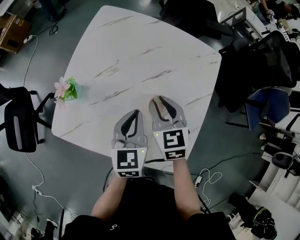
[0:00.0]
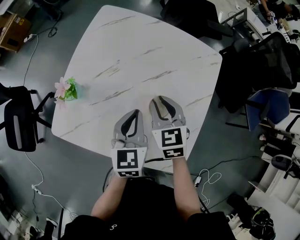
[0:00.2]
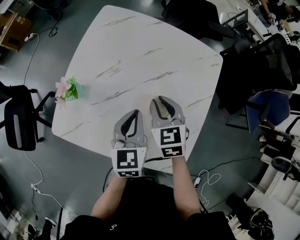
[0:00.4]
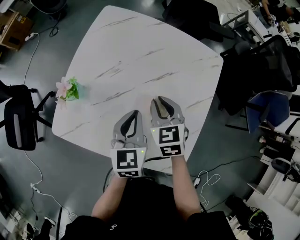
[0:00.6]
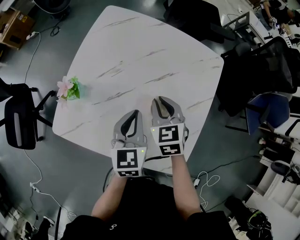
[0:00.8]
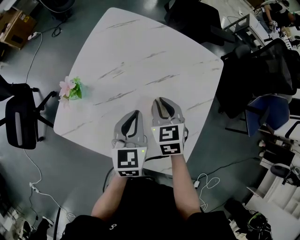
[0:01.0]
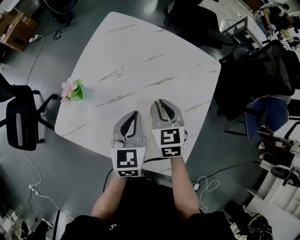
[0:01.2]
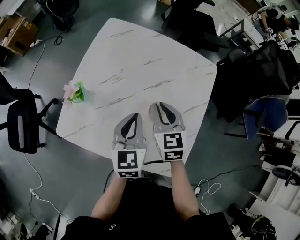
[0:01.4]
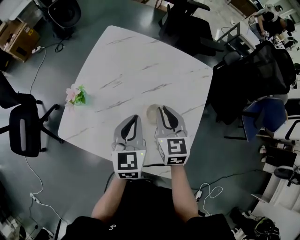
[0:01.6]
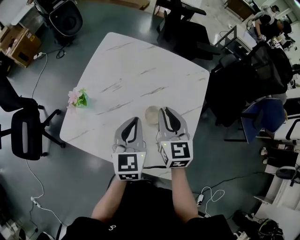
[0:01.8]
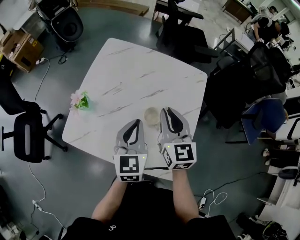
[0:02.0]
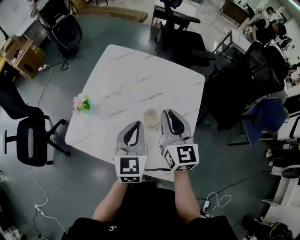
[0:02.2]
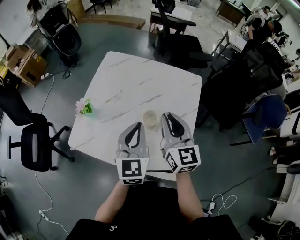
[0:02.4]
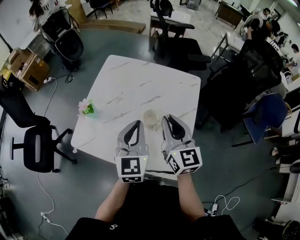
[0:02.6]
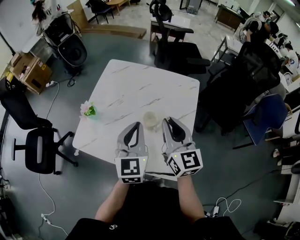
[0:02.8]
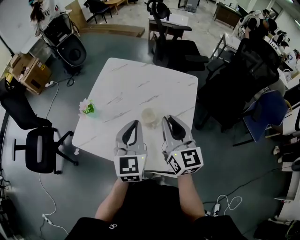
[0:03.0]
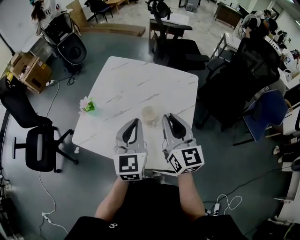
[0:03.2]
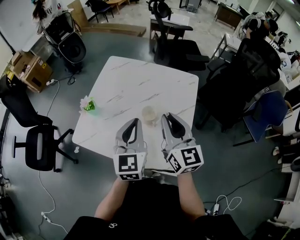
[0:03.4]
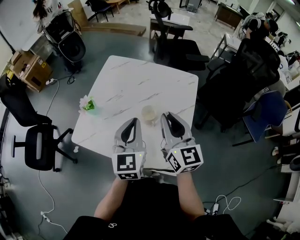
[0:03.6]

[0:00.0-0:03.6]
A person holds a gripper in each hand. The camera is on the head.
0:00.0 to 0:01.8: Both grippers travel together upward, roughly 10 cm.
0:01.8 to 0:03.6: Both grippers move upward and backward, approximately 15 cm. The right gripper changes its angle by approximately 20 degrees.

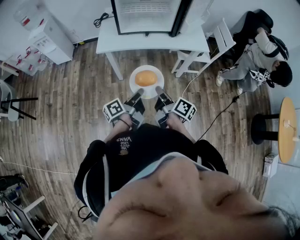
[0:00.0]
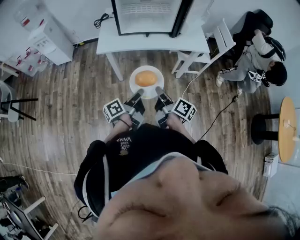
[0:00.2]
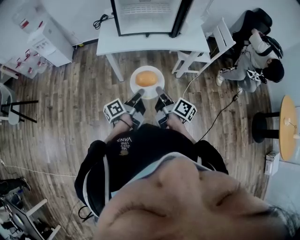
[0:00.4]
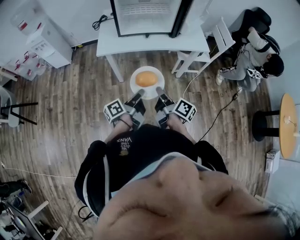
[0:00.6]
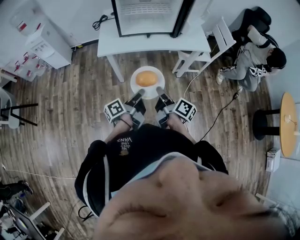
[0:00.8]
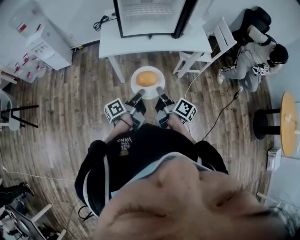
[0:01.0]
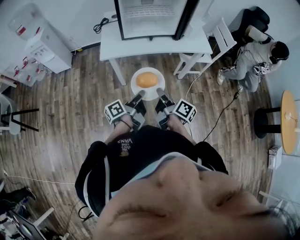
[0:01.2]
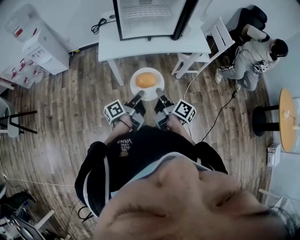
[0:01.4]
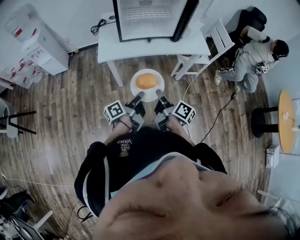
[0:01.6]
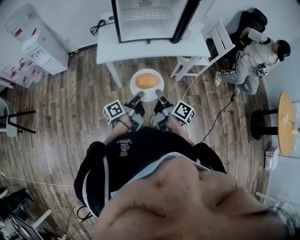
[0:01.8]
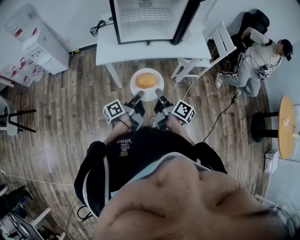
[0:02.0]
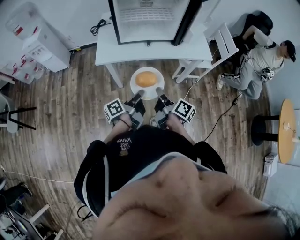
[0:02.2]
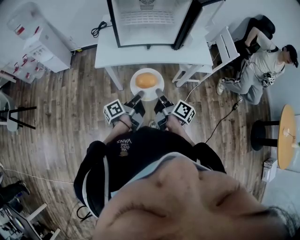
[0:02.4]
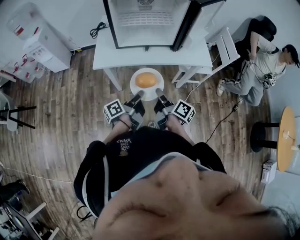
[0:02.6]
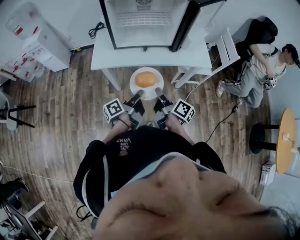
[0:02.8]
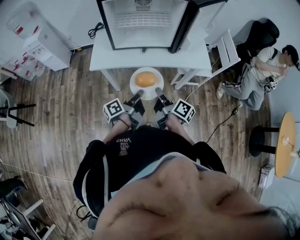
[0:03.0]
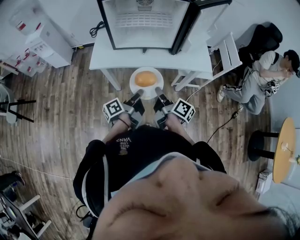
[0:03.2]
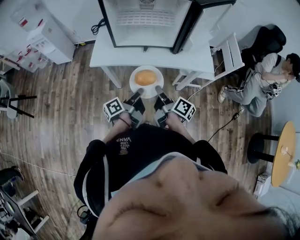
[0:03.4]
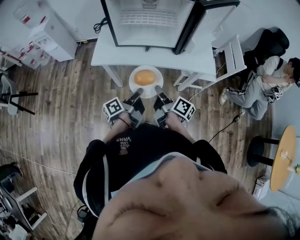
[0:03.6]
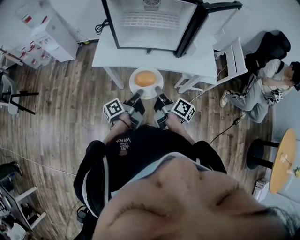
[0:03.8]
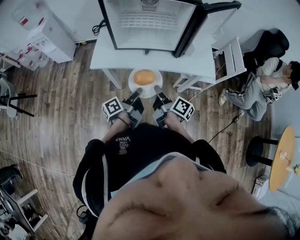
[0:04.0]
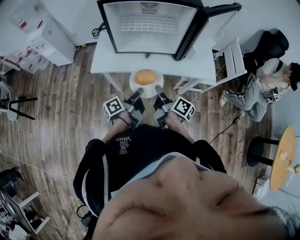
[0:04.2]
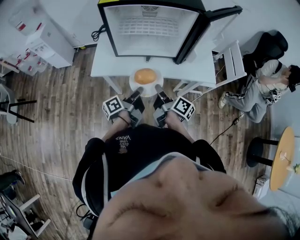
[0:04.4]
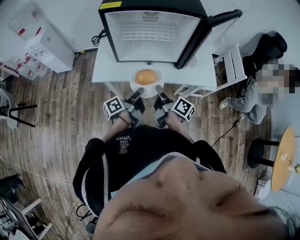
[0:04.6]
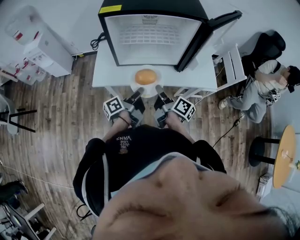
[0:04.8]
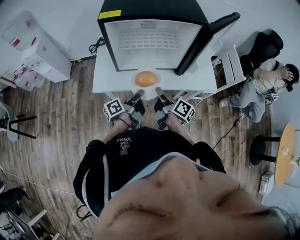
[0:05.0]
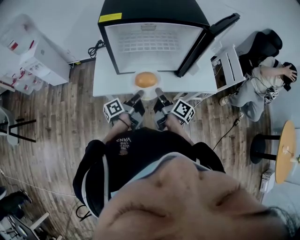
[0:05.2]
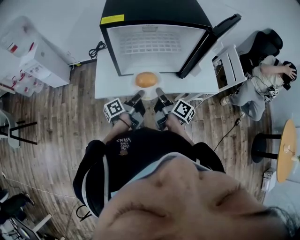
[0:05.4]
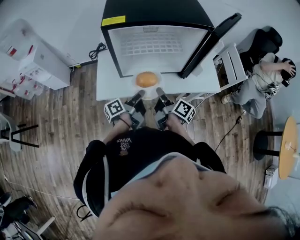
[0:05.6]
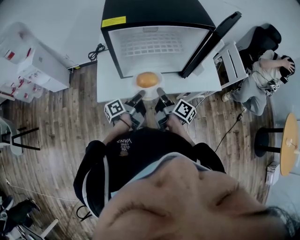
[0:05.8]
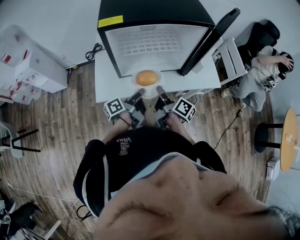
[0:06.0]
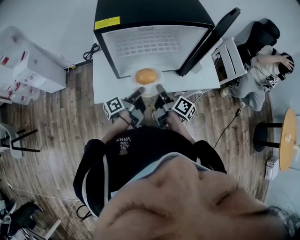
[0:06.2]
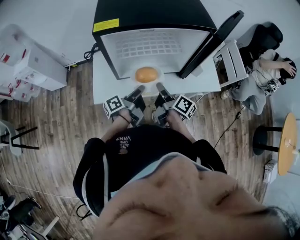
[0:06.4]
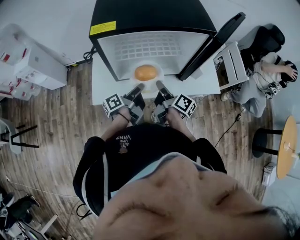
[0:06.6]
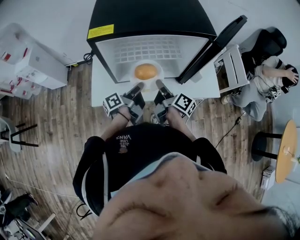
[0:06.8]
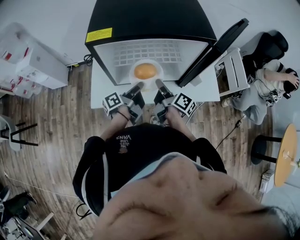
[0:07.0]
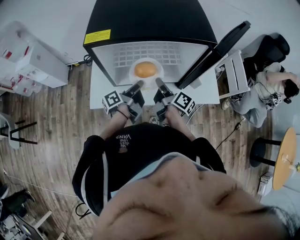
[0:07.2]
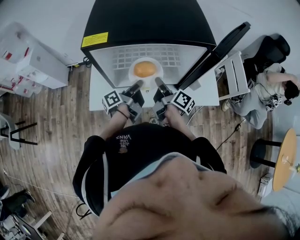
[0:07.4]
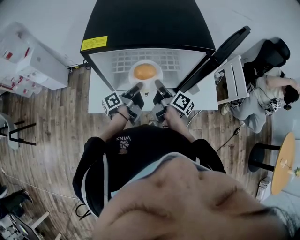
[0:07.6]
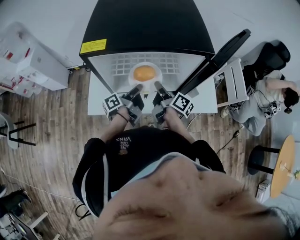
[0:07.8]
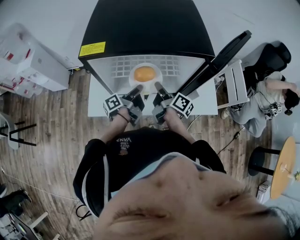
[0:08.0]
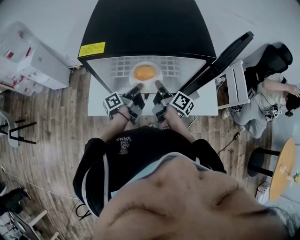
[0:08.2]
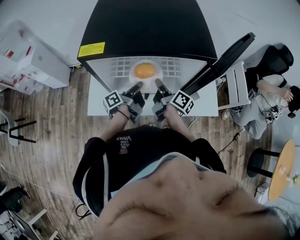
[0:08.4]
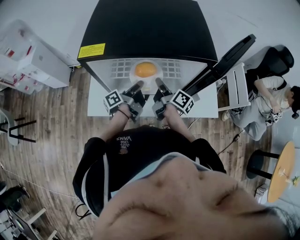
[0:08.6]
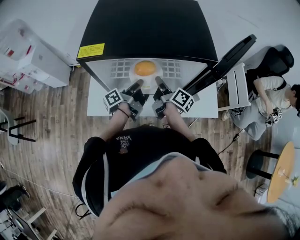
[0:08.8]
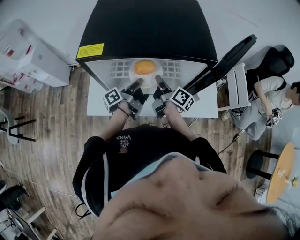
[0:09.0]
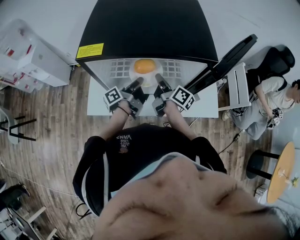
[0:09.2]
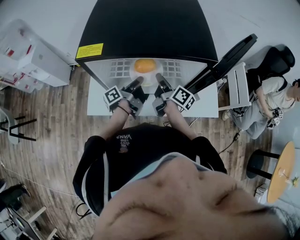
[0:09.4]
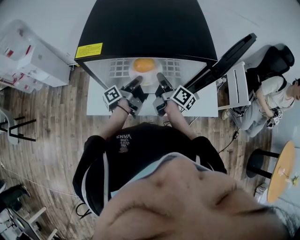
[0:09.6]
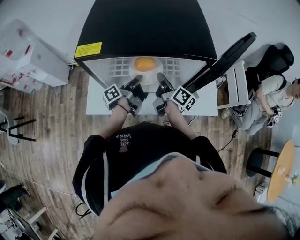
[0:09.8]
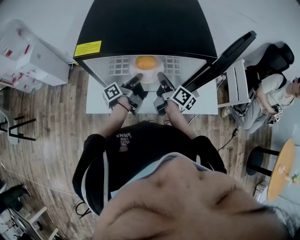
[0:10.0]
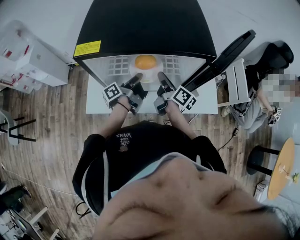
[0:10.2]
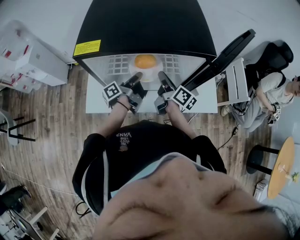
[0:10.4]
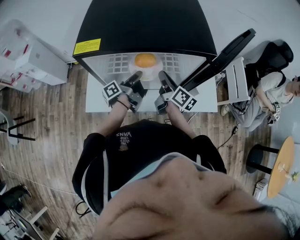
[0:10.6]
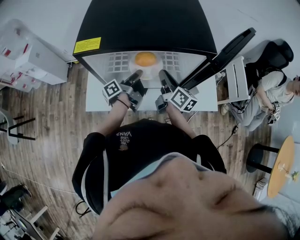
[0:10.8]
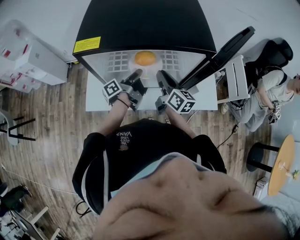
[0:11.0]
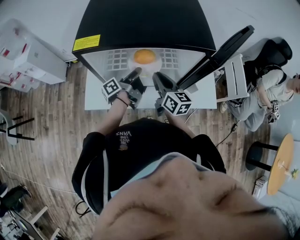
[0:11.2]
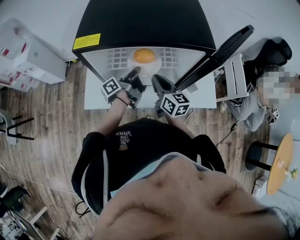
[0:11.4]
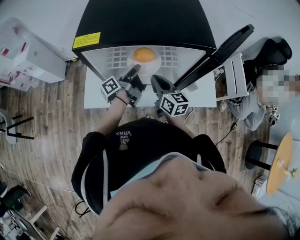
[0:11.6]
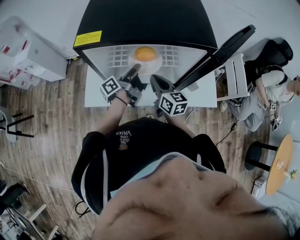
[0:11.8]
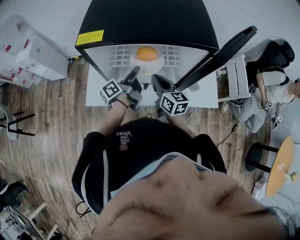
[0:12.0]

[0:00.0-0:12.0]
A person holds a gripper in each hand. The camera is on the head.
0:00.0 to 0:01.6: Both grippers move to the left, about 5 cm.
0:01.6 to 0:03.0: The two grippers go approximately 15 cm forward and to the right.
0:03.0 to 0:04.4: Both grippers travel together forward, about 10 cm.
0:04.4 to 0:06.0: Both grippers move forward and to the left, about 10 cm.
0:06.0 to 0:07.6: The two grippers go approximately 15 cm forward.
0:07.6 to 0:09.0: Both grippers move forward, roughly 5 cm.
0:09.0 to 0:10.4: The grippers move only a little.
0:10.4 to 0:12.0: The right gripper ends up about 5 cm from where it was, and swivels about 40 degrees; the left gripper opens.

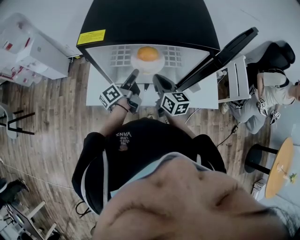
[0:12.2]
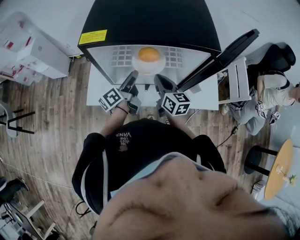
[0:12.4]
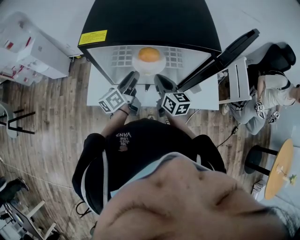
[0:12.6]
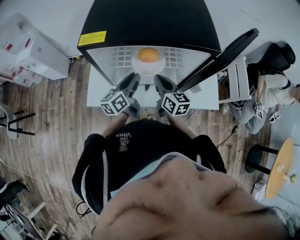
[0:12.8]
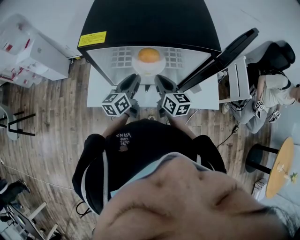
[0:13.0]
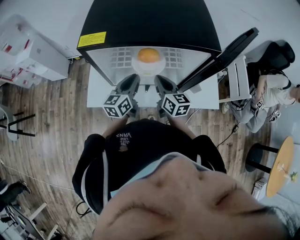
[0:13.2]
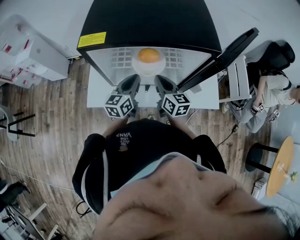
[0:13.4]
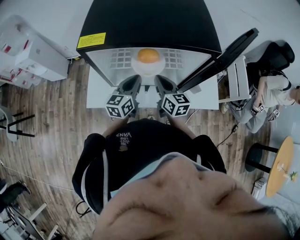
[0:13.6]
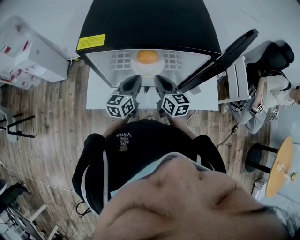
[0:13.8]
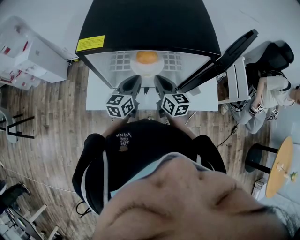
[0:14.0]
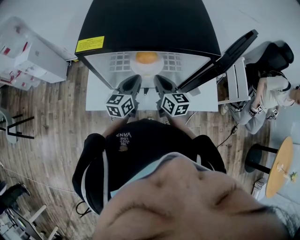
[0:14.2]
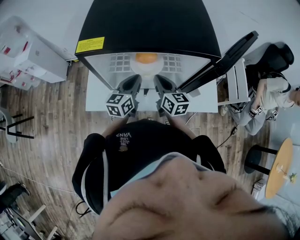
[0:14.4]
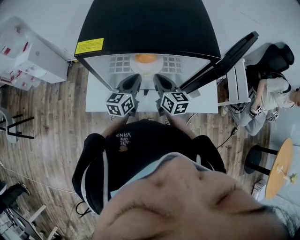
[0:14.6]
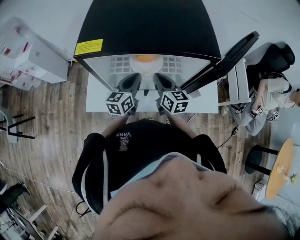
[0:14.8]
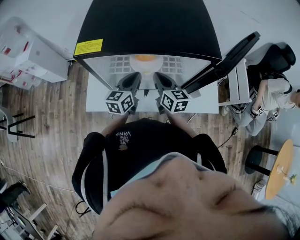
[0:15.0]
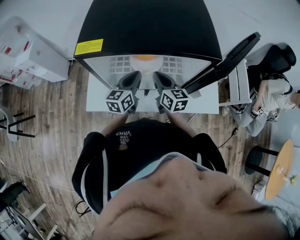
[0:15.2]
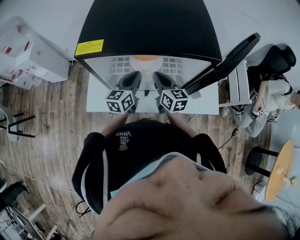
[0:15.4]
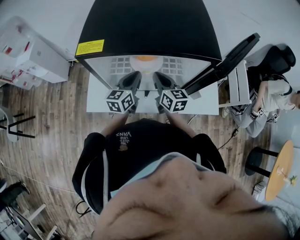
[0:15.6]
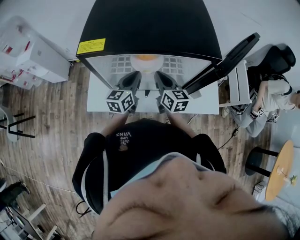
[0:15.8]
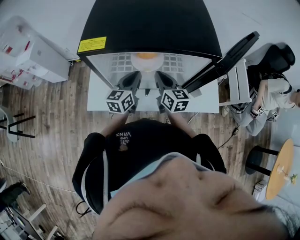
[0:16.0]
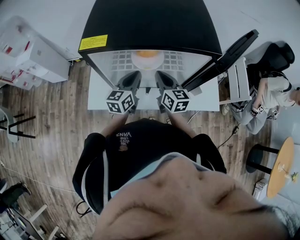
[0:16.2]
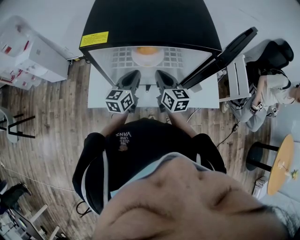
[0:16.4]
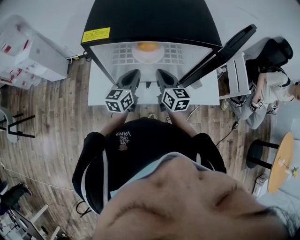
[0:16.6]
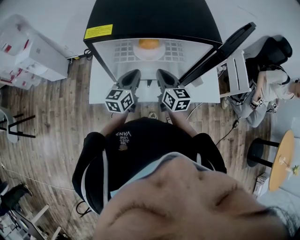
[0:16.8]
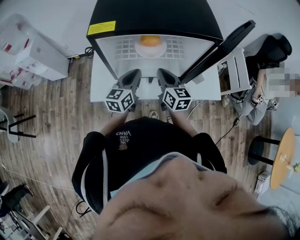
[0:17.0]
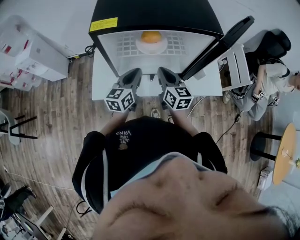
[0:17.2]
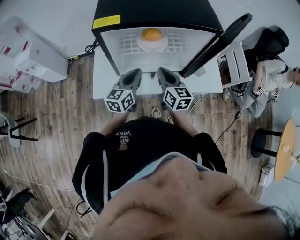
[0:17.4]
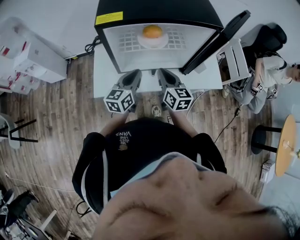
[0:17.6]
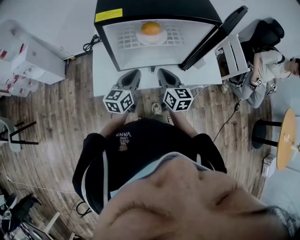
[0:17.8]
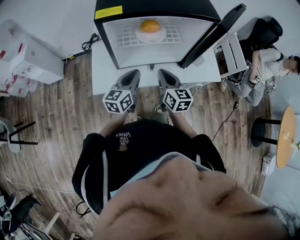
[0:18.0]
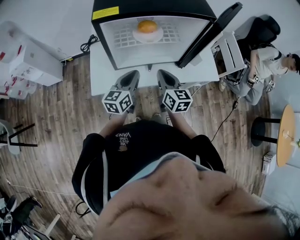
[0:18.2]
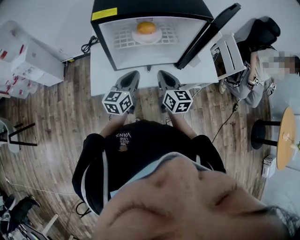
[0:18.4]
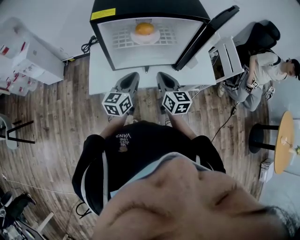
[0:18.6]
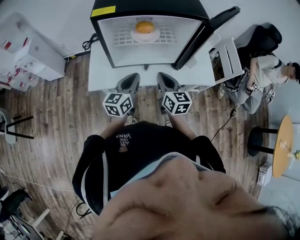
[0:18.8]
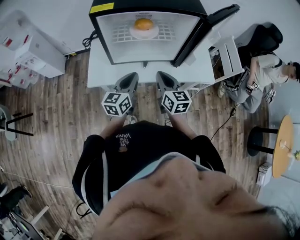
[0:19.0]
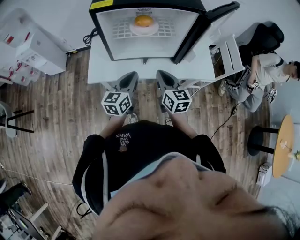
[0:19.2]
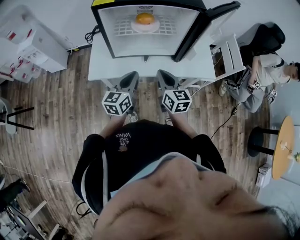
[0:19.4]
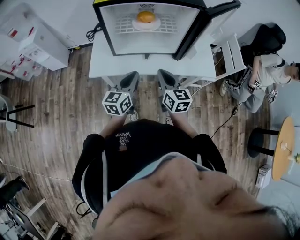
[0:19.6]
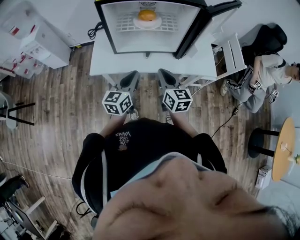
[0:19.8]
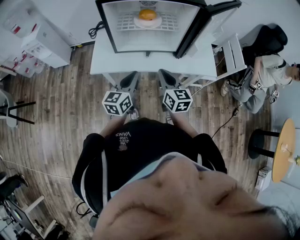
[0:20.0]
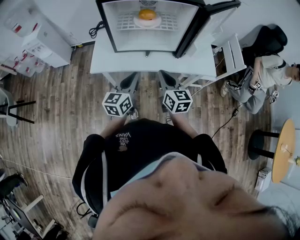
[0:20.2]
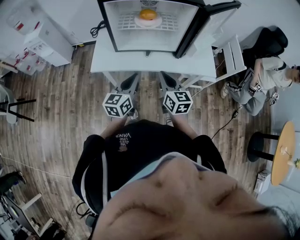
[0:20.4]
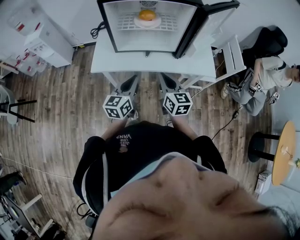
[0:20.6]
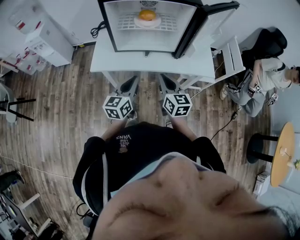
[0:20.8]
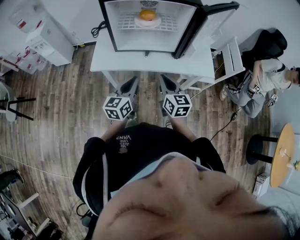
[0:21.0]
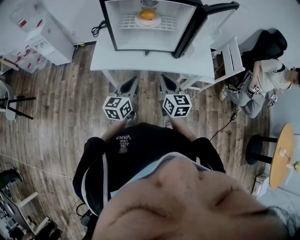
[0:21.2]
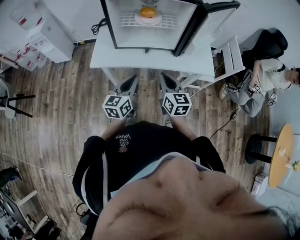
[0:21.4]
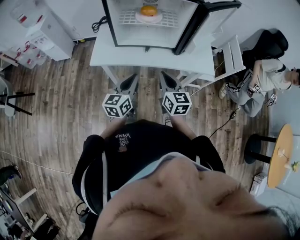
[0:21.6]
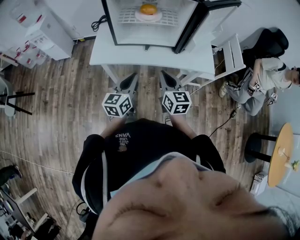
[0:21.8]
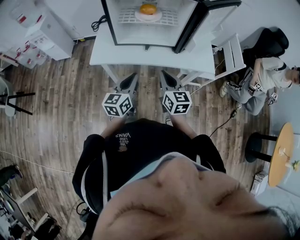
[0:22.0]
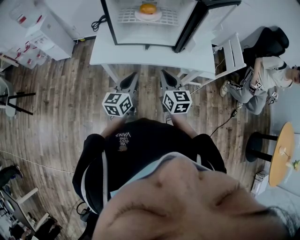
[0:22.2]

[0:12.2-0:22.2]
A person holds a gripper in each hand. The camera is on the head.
0:12.2 to 0:13.6: The left gripper rotates around the line of its fingers by about 50 degrees, clockwise from behind, and closes its fingers.
0:13.6 to 0:16.4: There are only small adjustments of the grippers.
0:16.4 to 0:18.0: Both grippers travel together backward, some 10 cm.
0:18.0 to 0:19.4: Both grippers move backward and to the right, approximately 10 cm.
0:19.4 to 0:20.8: The two grippers go some 5 cm backward.
0:20.8 to 0:22.2: The grippers make only small movements.
